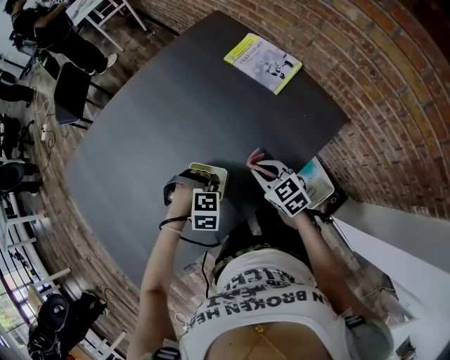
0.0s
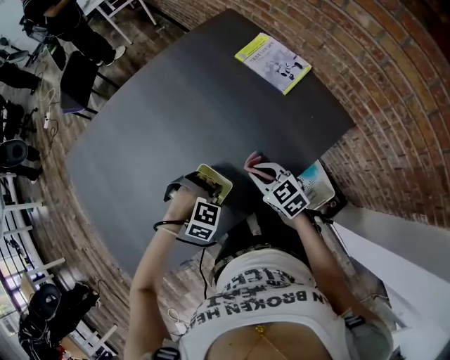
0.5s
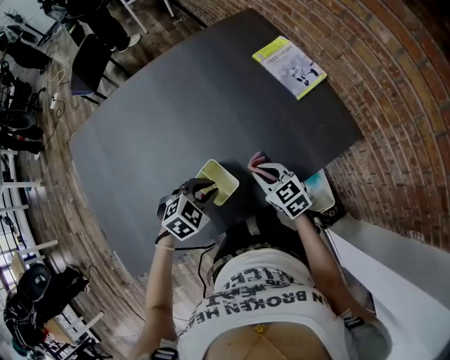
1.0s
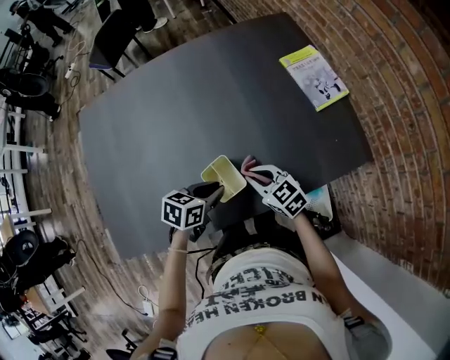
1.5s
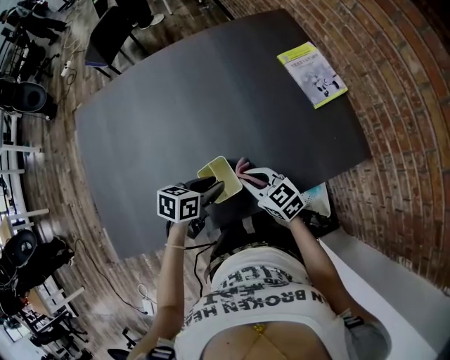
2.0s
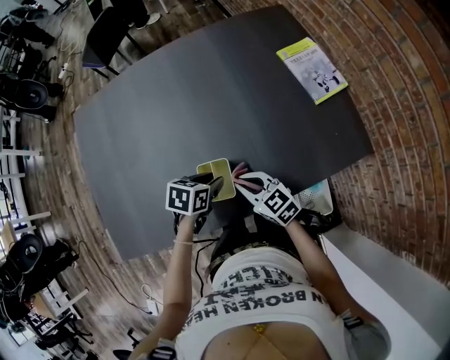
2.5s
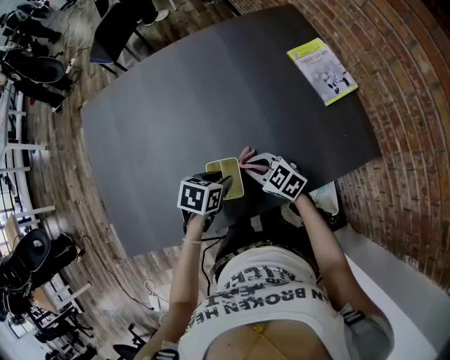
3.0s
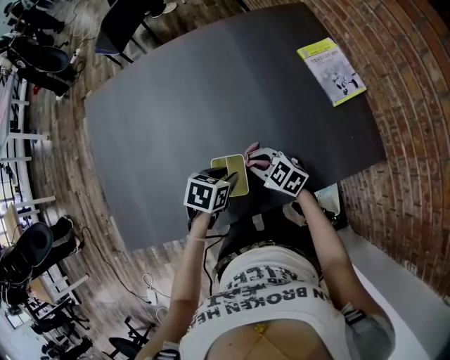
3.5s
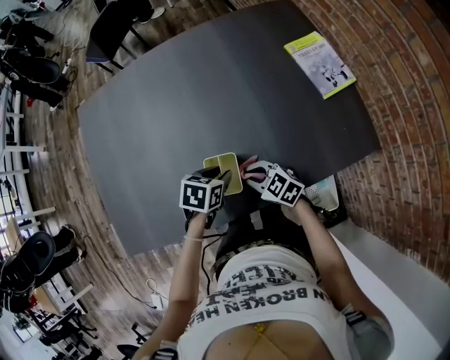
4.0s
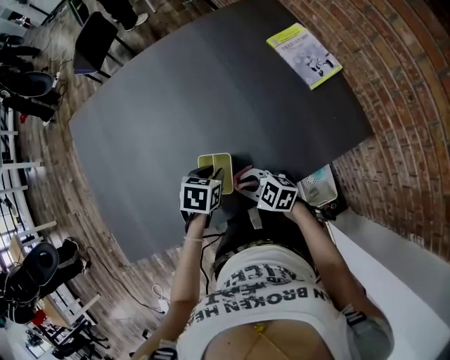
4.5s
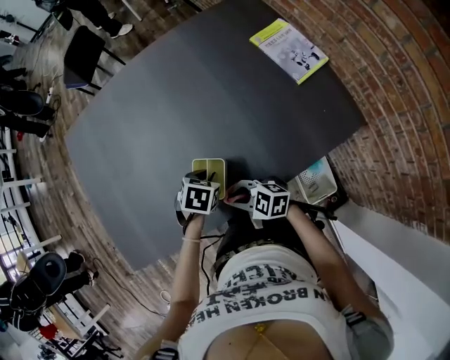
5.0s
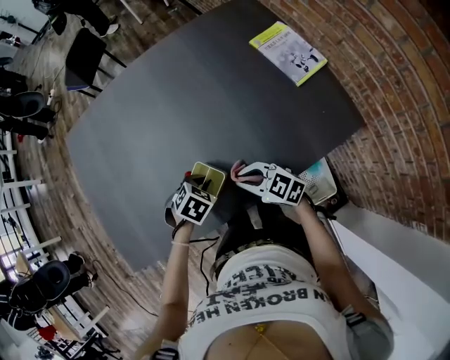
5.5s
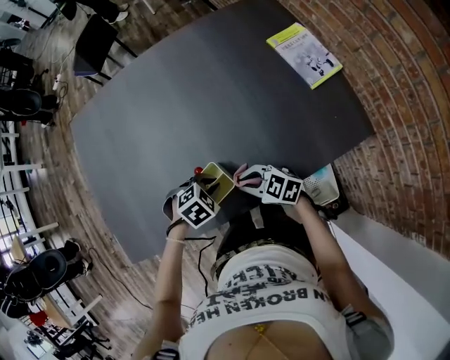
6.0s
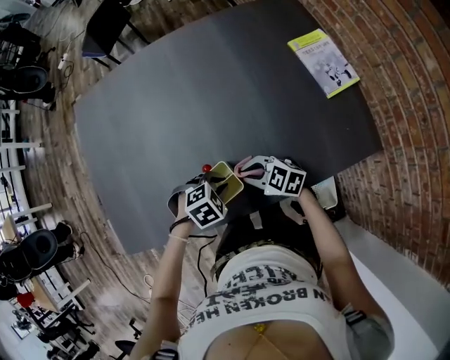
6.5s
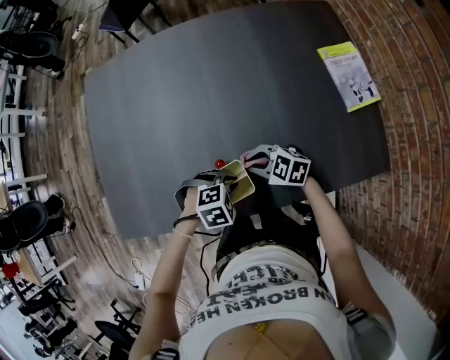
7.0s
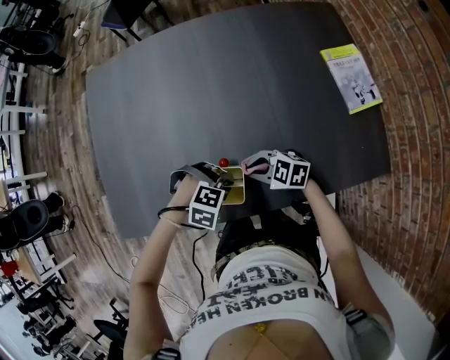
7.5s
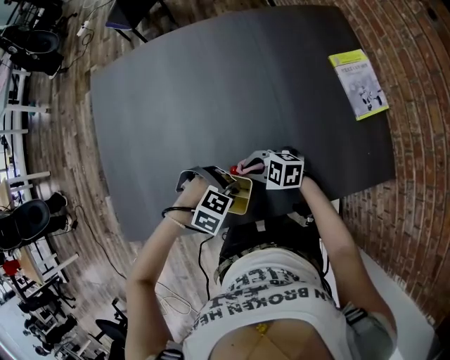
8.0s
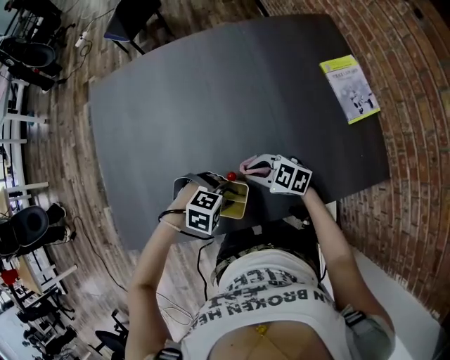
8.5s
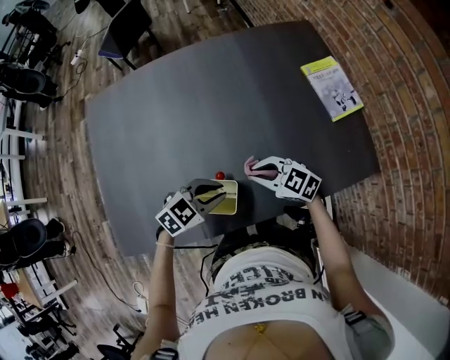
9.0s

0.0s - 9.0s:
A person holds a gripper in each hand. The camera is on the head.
0.0s - 2.0s: The left gripper ends up approximately 5 cm from where it was, rotates around the line of its fingers by about 100 degrees, counterclockwise from behind, and opens up; the right gripper ends up roughly 10 cm from where it was, and swivels about 30 degrees.
2.0s - 4.5s: The right gripper ends up some 10 cm from where it was, and turns by some 30 degrees. The left gripper changes its angle by some 20 degrees.
4.5s - 7.0s: The left gripper shifts by some 5 cm, and rolls clockwise, seen from behind, by approximately 50 degrees. The right gripper changes place by approximately 10 cm.
7.0s - 9.0s: The two grippers go about 10 cm upward. The left gripper turns by roughly 30 degrees.

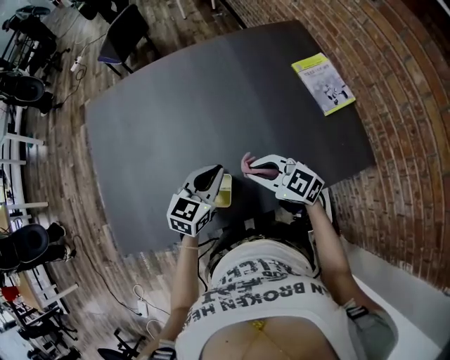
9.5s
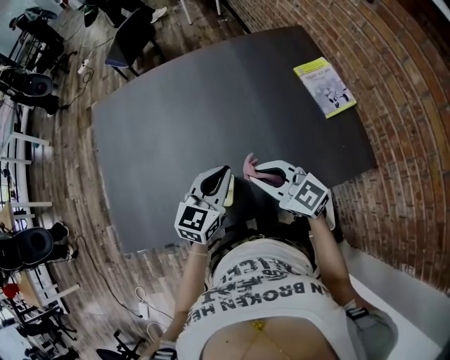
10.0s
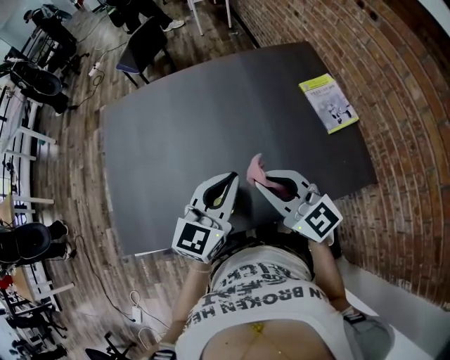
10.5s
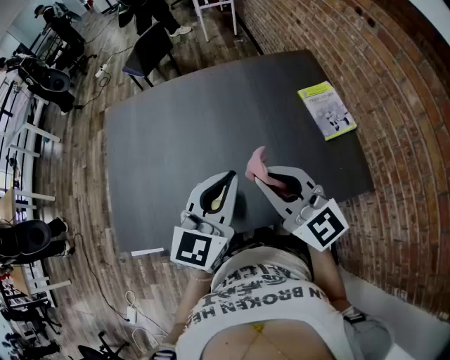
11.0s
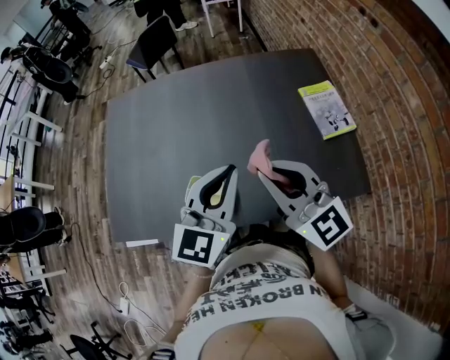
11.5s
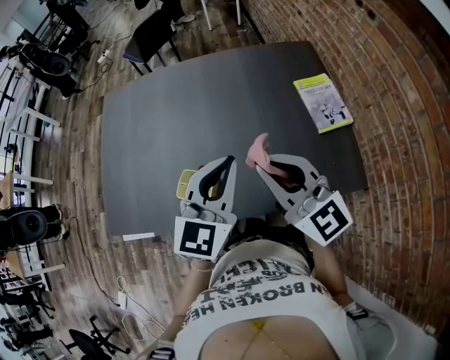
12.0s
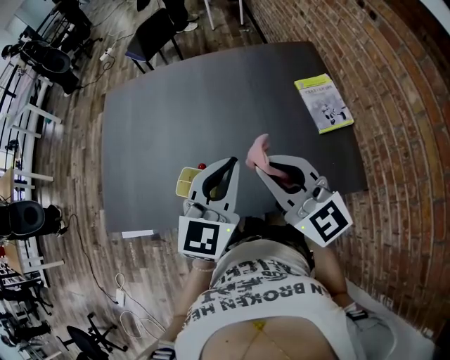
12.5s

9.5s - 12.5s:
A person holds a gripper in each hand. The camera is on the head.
9.5s - 11.0s: The grippers both shift upward by about 20 cm. The right gripper turns by about 30 degrees. The left gripper changes its angle by roughly 20 degrees.
11.0s - 12.5s: The two grippers go approximately 5 cm to the right.

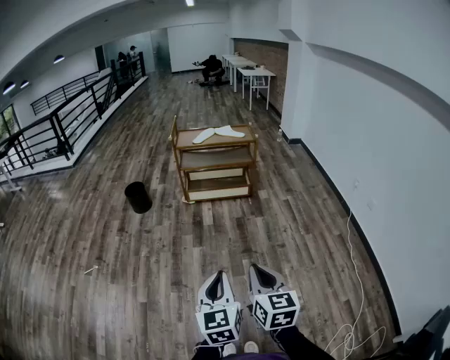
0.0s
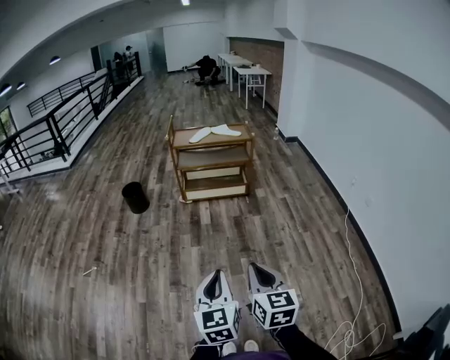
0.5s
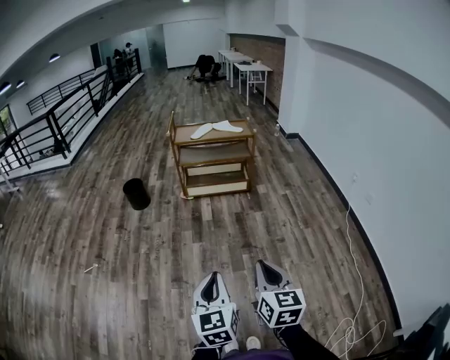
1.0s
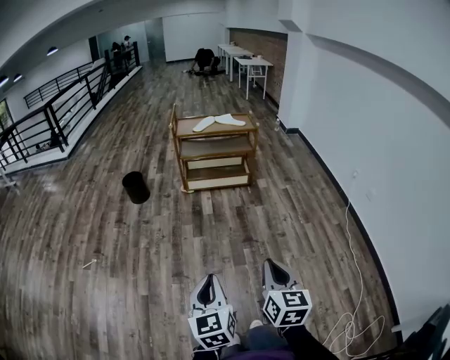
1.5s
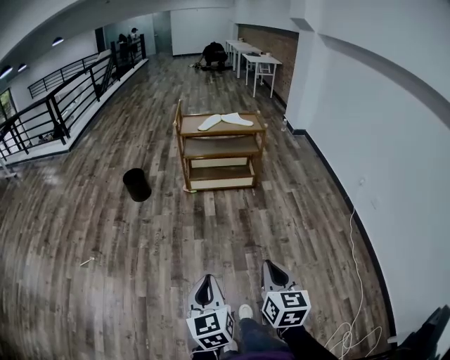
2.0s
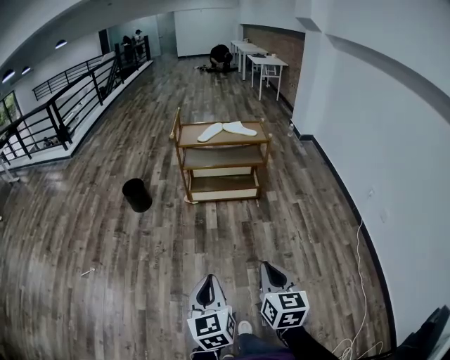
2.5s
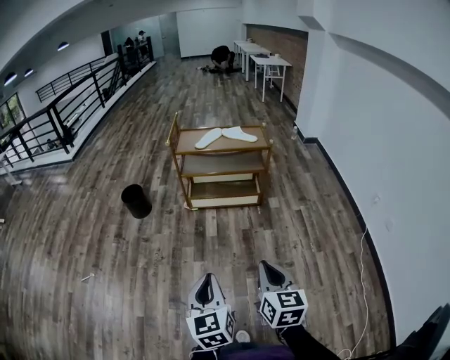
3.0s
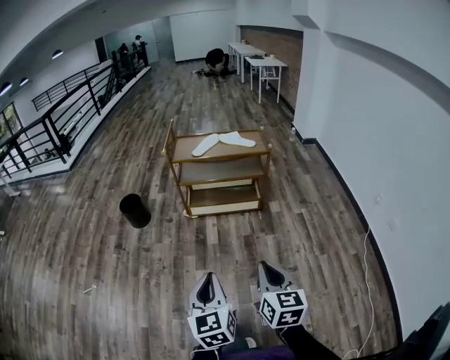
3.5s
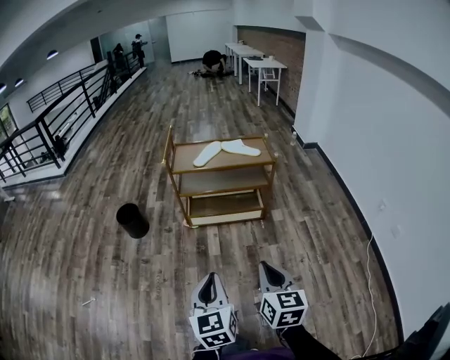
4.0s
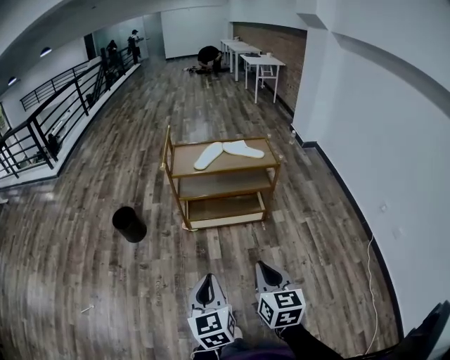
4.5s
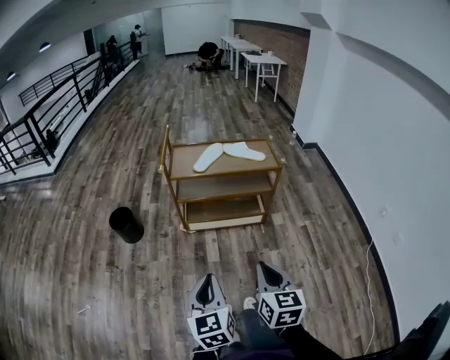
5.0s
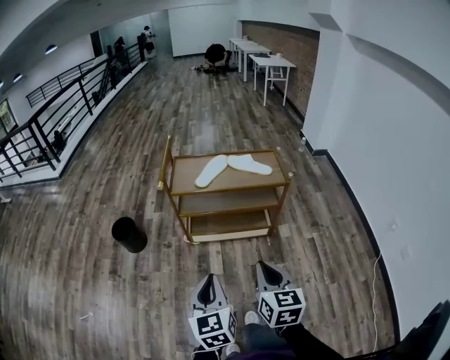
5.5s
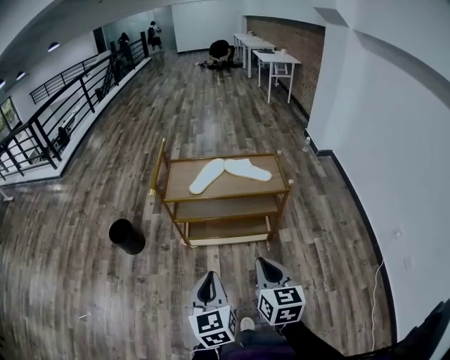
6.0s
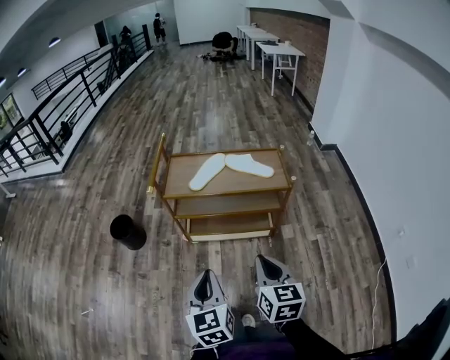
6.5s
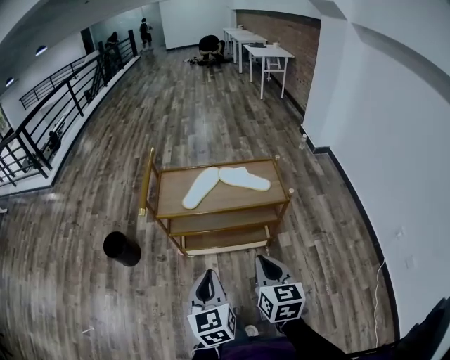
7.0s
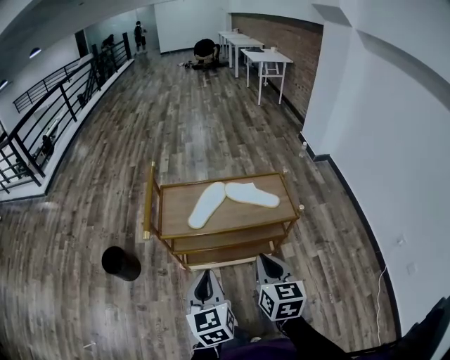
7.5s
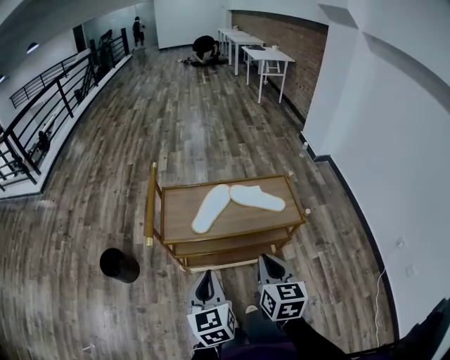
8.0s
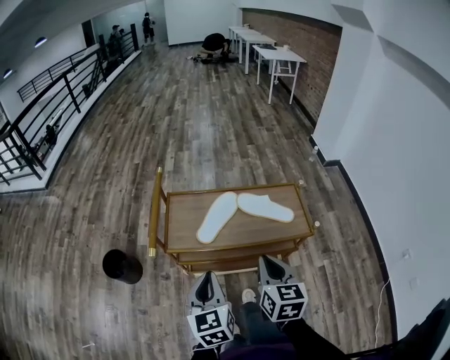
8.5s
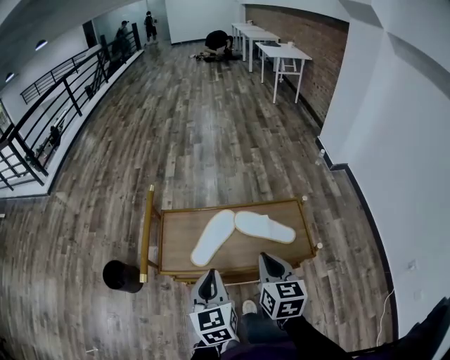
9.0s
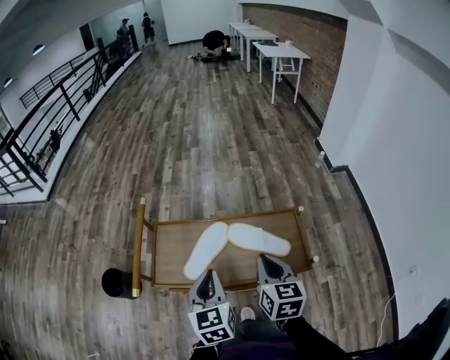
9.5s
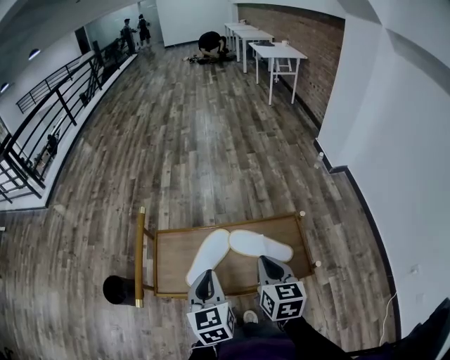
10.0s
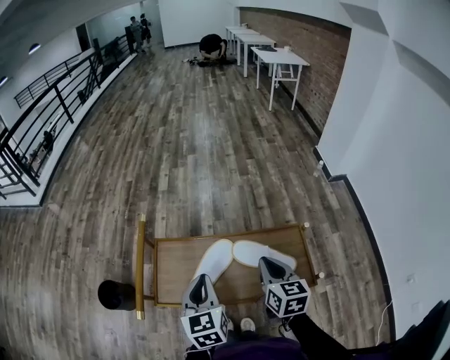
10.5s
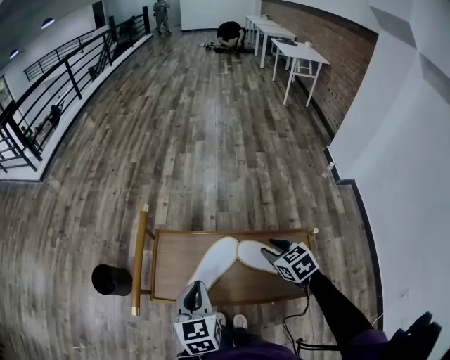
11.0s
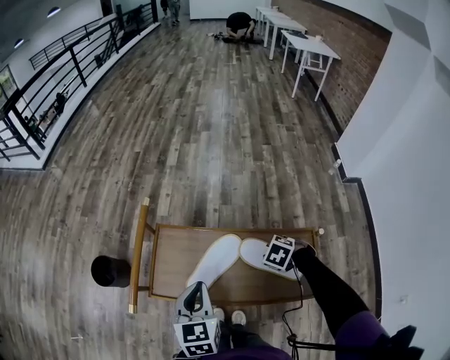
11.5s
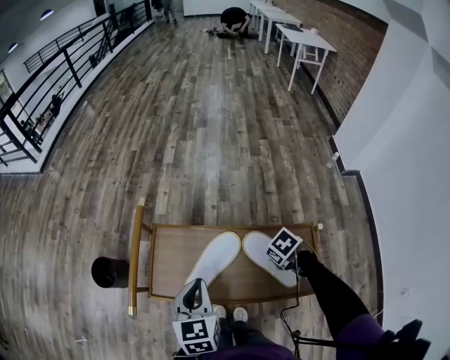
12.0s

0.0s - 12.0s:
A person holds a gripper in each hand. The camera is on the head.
0.0s - 2.0s: The right gripper travels forward by about 5 cm. Meanwhile the left gripper moves to the left, roughly 10 cm.
2.0s - 4.0s: The two grippers go about 35 cm forward.
4.0s - 6.0s: Both grippers travel together forward, about 25 cm.
6.0s - 8.0s: The grippers both shift forward by some 25 cm.
8.0s - 10.0s: Both grippers move forward, about 25 cm.
10.0s - 12.0s: The right gripper heads downward, covering some 20 cm, tilts its fingers approximately 50 degrees downward, and opens, then closes once more, while the left gripper shifts by roughly 10 cm.

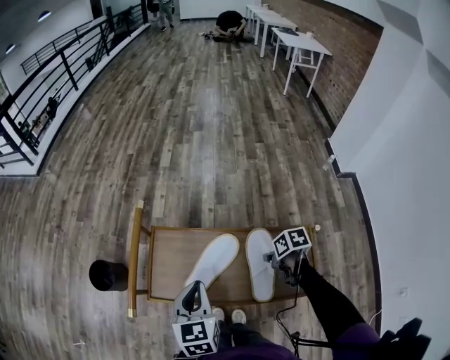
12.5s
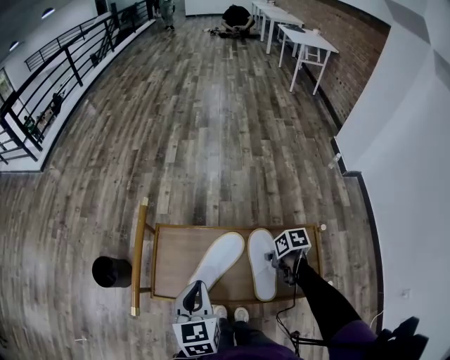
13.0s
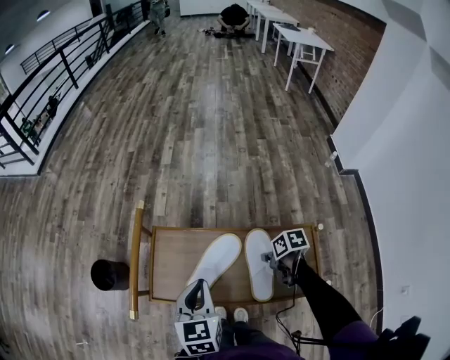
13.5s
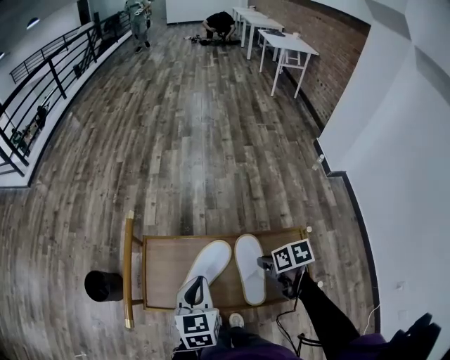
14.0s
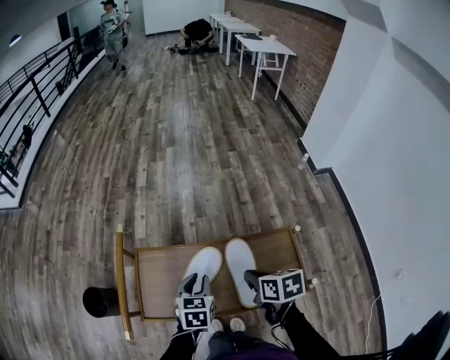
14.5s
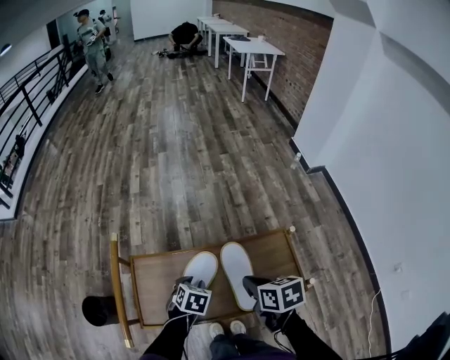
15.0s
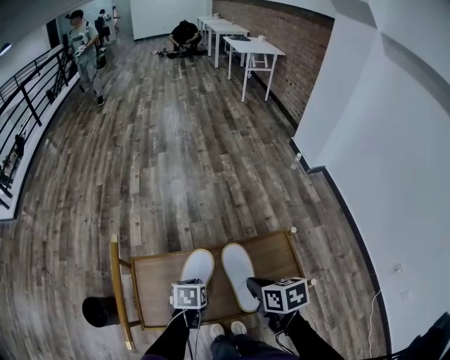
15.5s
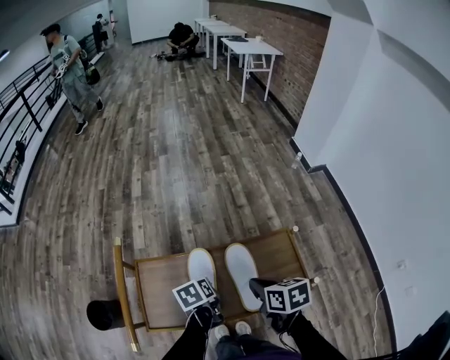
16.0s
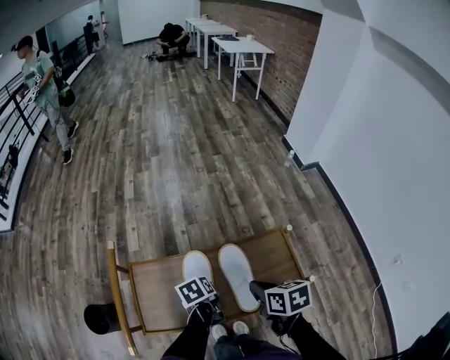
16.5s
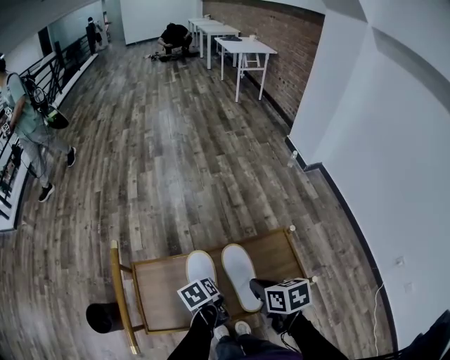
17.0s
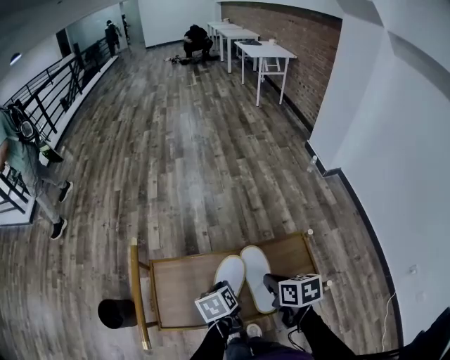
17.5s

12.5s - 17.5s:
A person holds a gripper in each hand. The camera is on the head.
12.5s - 15.0s: The left gripper is displaced downward by some 15 cm, tips its fingers downward by roughly 30 degrees, and opens up, while the right gripper goes roughly 10 cm upward, and rotates roughly 30 degrees.
15.0s - 17.5s: The left gripper shifts roughly 5 cm upward, and twists some 40 degrees counterclockwise, seen from behind.
